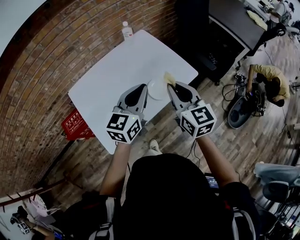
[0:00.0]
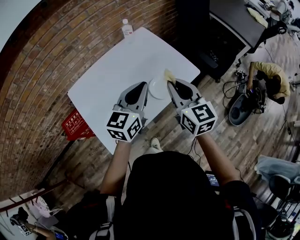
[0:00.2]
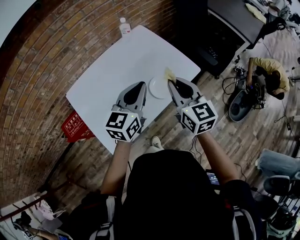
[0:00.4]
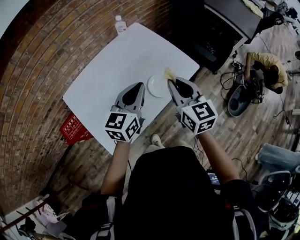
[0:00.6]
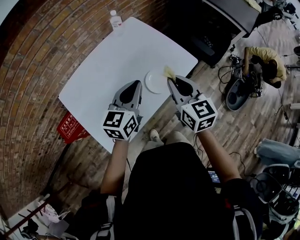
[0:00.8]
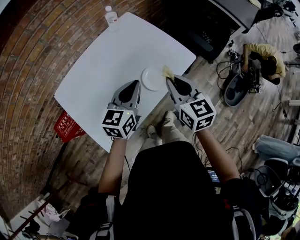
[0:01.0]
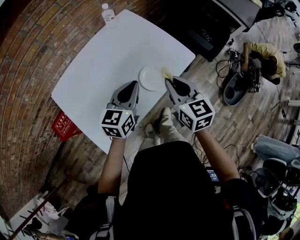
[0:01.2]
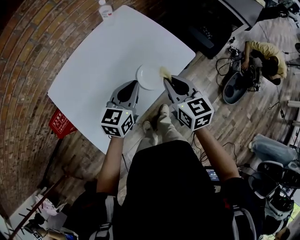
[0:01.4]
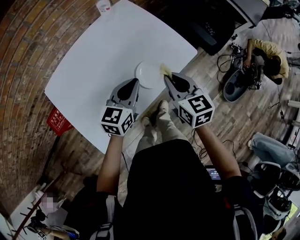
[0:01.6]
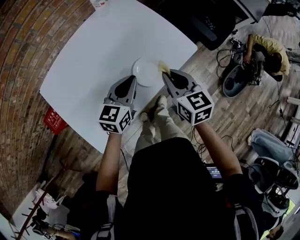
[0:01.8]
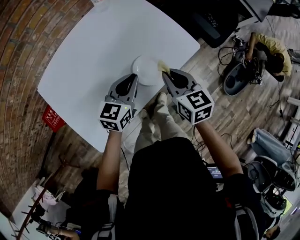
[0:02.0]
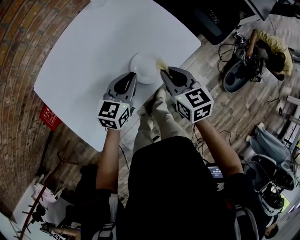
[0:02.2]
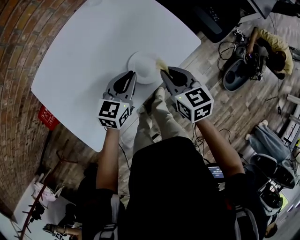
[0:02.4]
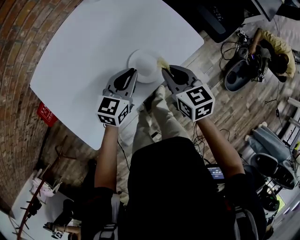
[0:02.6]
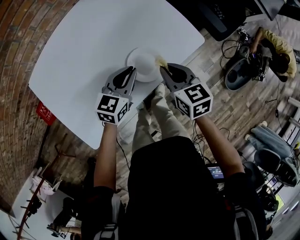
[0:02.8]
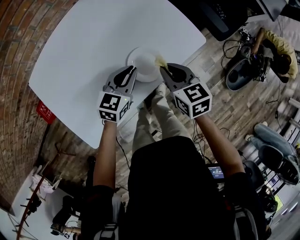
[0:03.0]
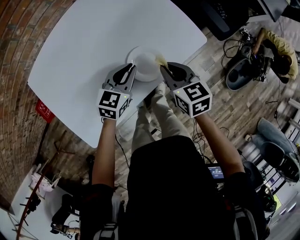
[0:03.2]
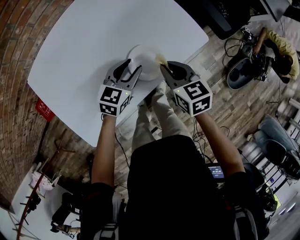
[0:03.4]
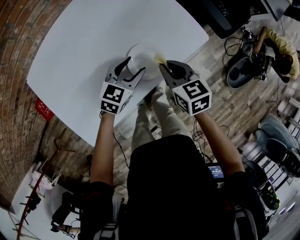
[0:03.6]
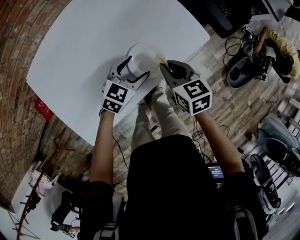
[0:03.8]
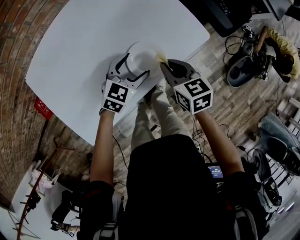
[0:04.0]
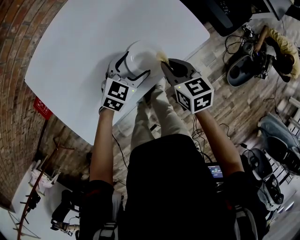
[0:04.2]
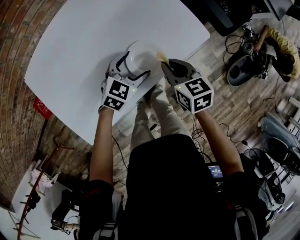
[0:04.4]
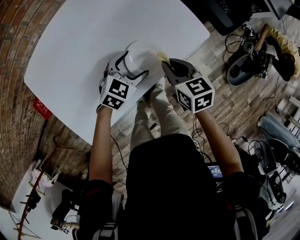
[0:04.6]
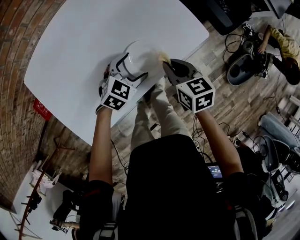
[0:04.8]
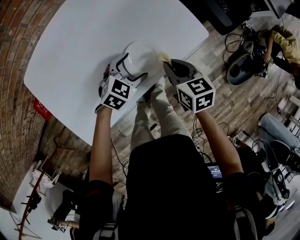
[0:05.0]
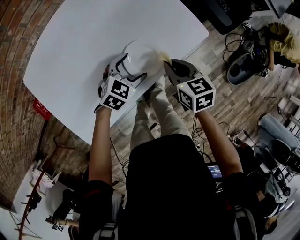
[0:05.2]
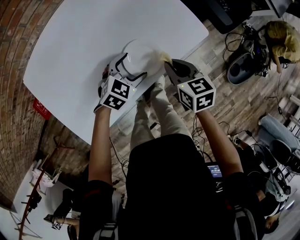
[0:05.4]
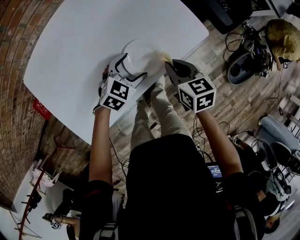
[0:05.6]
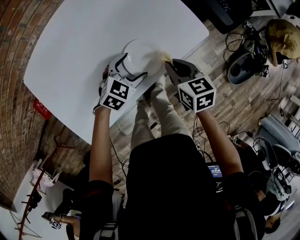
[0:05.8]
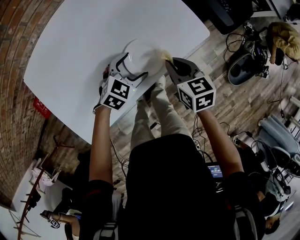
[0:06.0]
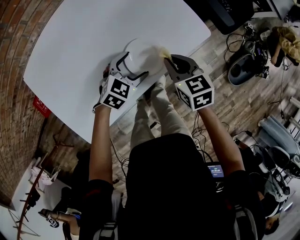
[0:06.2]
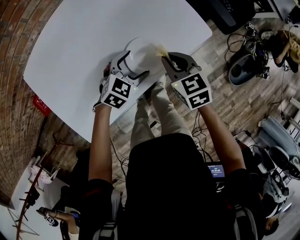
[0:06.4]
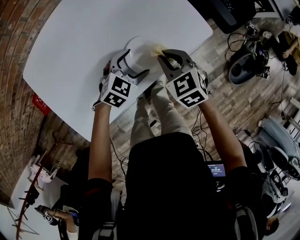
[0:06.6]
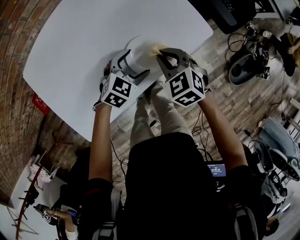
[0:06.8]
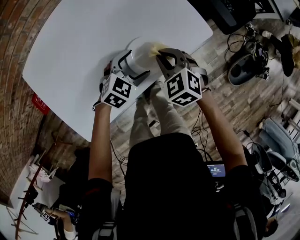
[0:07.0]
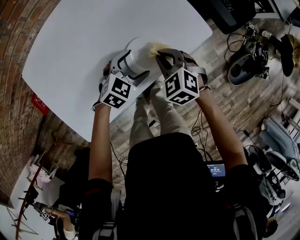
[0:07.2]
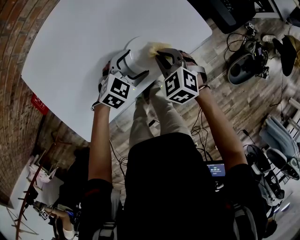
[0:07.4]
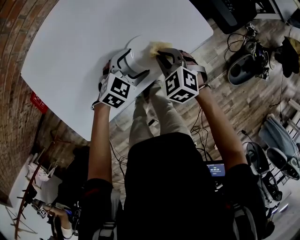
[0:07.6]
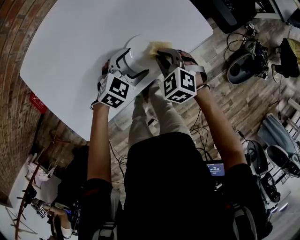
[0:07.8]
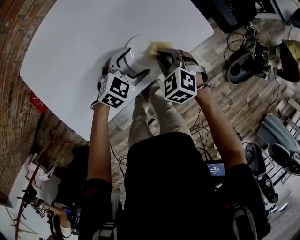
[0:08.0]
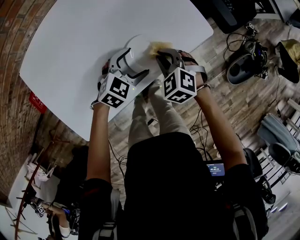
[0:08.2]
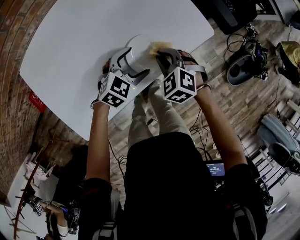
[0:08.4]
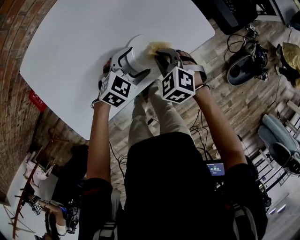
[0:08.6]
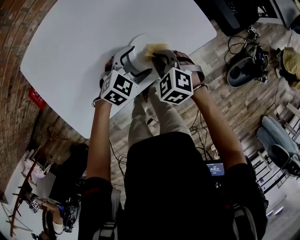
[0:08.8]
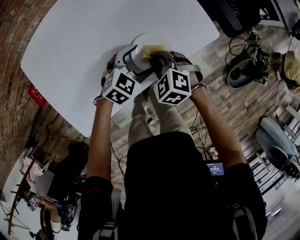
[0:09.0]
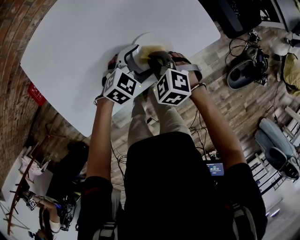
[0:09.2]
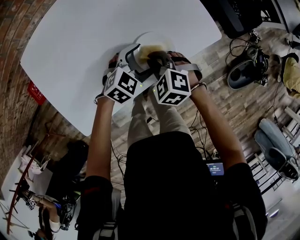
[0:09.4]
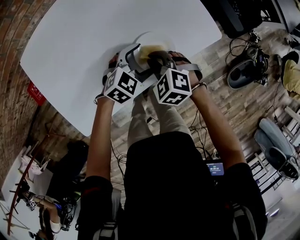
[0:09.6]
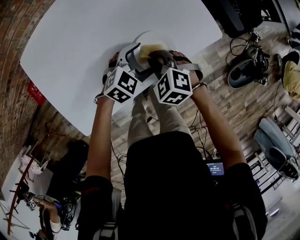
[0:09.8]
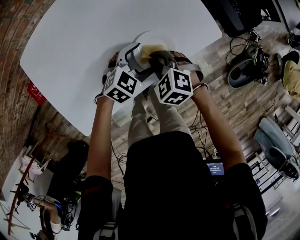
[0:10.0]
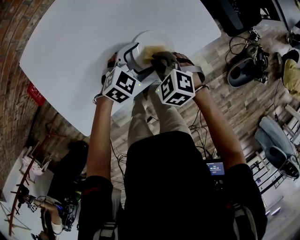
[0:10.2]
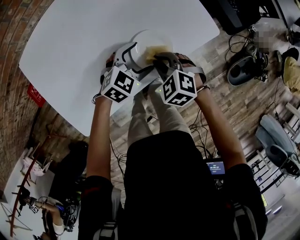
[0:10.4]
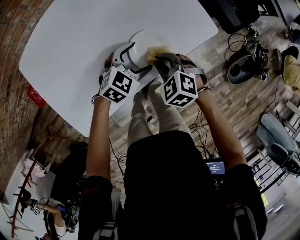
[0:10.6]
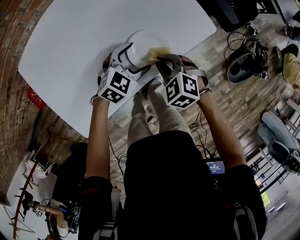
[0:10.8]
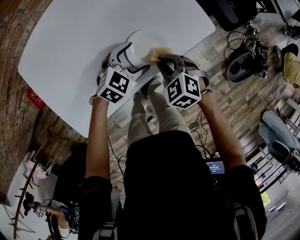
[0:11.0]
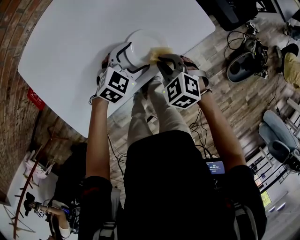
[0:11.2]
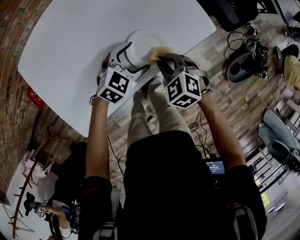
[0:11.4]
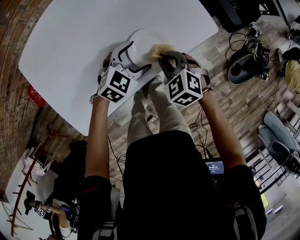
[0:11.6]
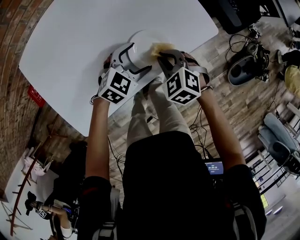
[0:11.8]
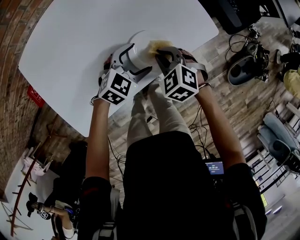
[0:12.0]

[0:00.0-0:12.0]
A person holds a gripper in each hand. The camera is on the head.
0:00.0 to 0:01.6: Both grippers travel together downward and forward, about 15 cm.
0:01.6 to 0:03.0: Both grippers travel together downward, about 10 cm.
0:03.0 to 0:04.4: The left gripper shifts by roughly 5 cm, and opens up.
0:04.4 to 0:06.0: The grippers move only a little.
0:06.0 to 0:07.6: The right gripper ends up roughly 5 cm from where it was, and twists approximately 50 degrees counterclockwise, seen from behind.
0:07.6 to 0:09.0: The right gripper changes place by some 5 cm.
0:09.0 to 0:12.0: The grippers stay close to where they were, moving slightly.

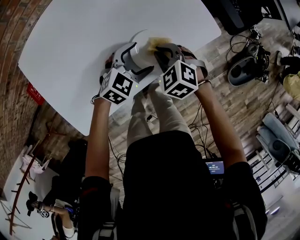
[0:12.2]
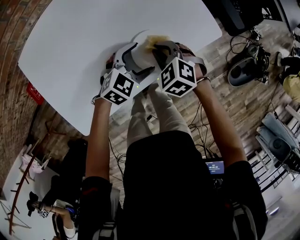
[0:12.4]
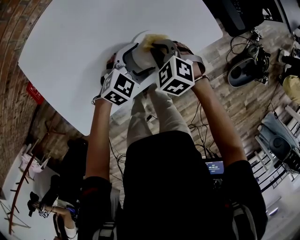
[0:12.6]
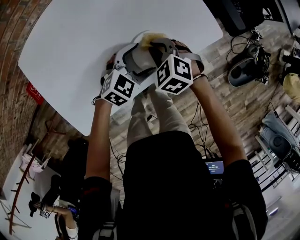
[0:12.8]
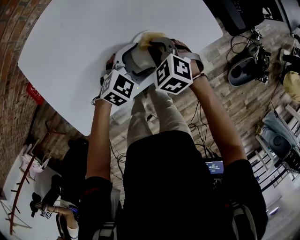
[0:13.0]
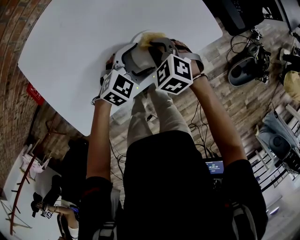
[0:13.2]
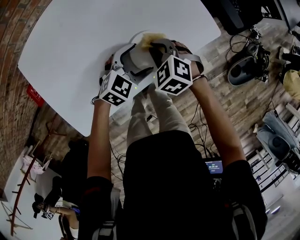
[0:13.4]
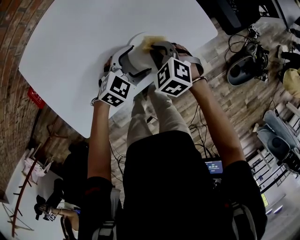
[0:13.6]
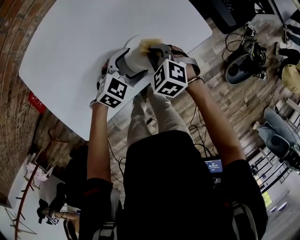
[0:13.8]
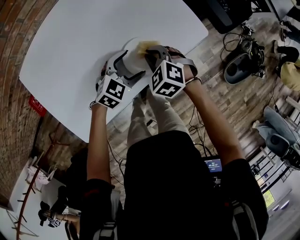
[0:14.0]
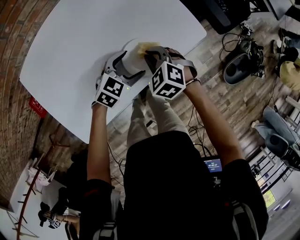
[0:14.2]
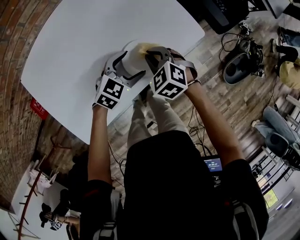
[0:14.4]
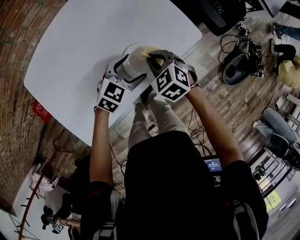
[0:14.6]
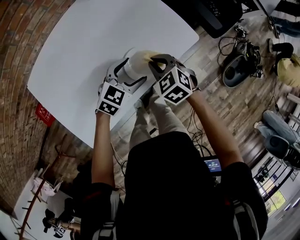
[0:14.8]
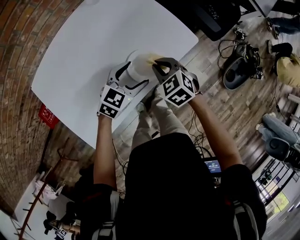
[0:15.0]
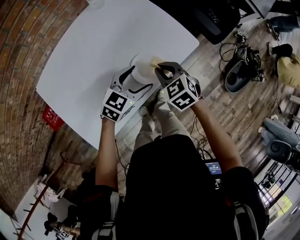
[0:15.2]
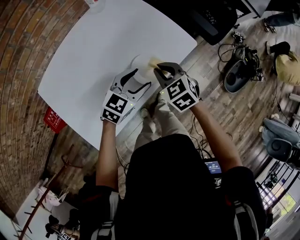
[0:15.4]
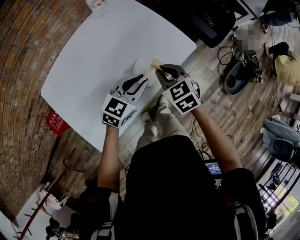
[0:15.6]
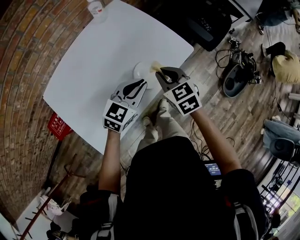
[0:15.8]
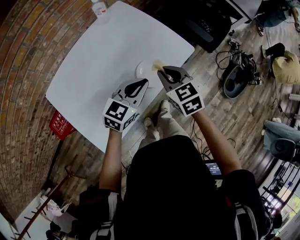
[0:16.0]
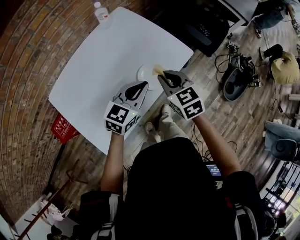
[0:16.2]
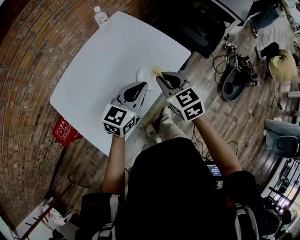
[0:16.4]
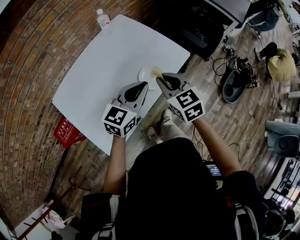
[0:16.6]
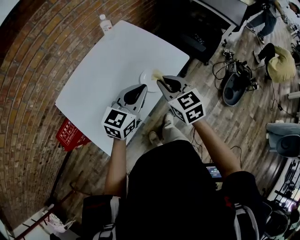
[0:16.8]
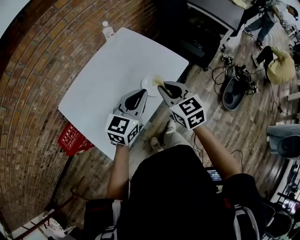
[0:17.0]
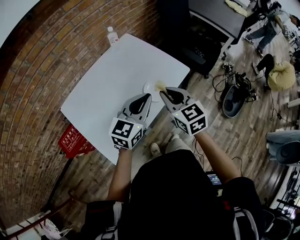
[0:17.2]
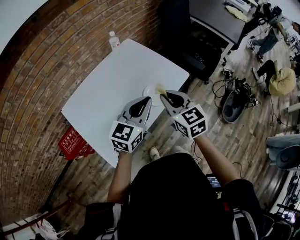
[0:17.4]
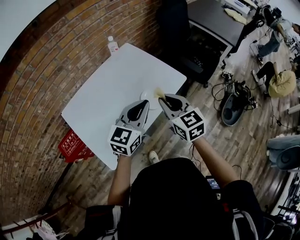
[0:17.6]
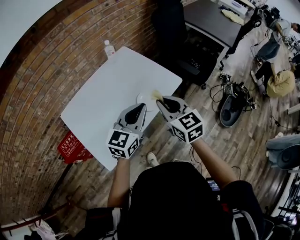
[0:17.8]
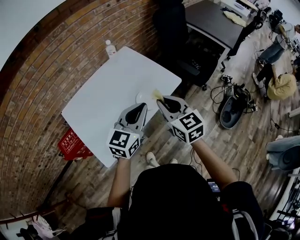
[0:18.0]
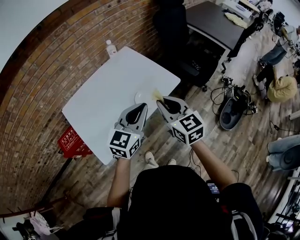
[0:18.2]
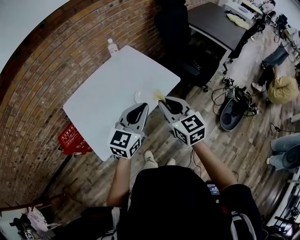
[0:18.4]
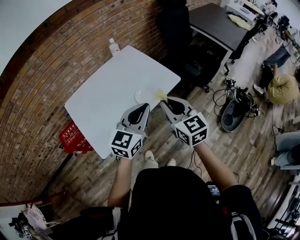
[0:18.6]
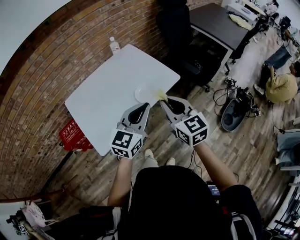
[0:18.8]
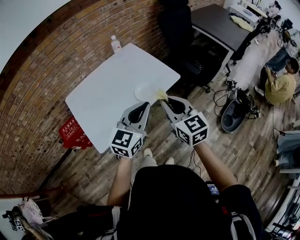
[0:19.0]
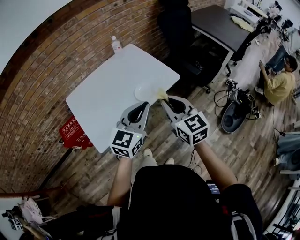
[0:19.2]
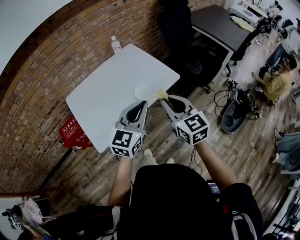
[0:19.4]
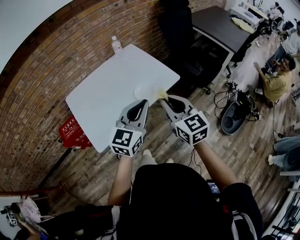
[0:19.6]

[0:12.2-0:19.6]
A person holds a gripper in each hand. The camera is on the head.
0:12.2 to 0:13.6: The grippers move only a little.
0:13.6 to 0:15.2: The grippers both shift upward by about 10 cm. The right gripper rotates roughly 20 degrees.
0:15.2 to 0:16.6: The left gripper goes some 15 cm upward, and closes up. The right gripper is displaced upward and backward by approximately 15 cm, and swivels some 30 degrees.
0:16.6 to 0:18.2: The grippers both shift upward, backward and to the right by roughly 15 cm.
0:18.2 to 0:19.6: Both grippers travel together backward, approximately 5 cm.

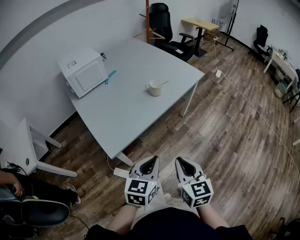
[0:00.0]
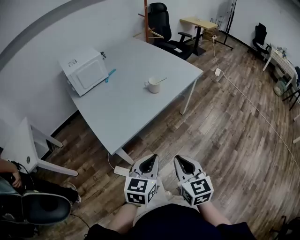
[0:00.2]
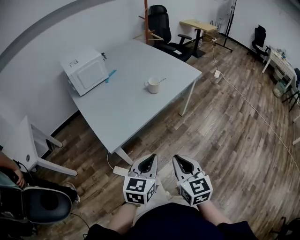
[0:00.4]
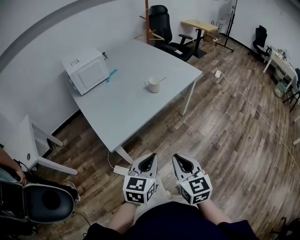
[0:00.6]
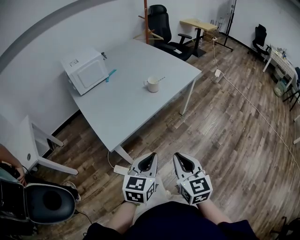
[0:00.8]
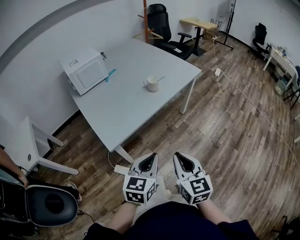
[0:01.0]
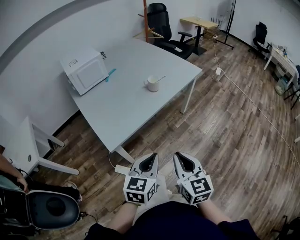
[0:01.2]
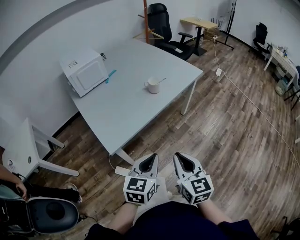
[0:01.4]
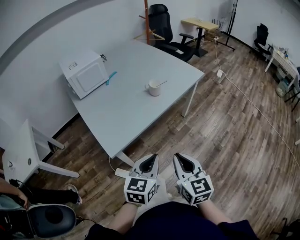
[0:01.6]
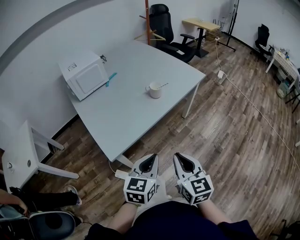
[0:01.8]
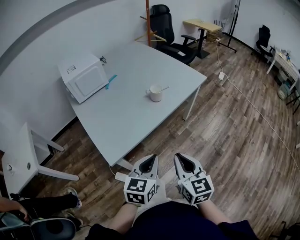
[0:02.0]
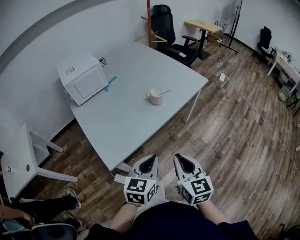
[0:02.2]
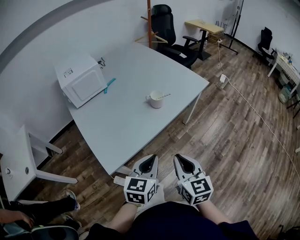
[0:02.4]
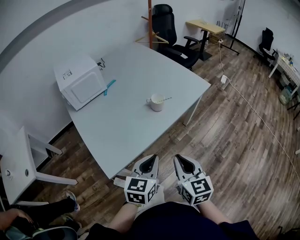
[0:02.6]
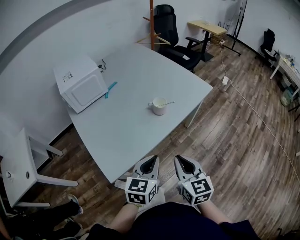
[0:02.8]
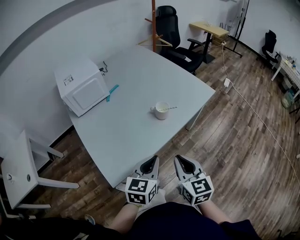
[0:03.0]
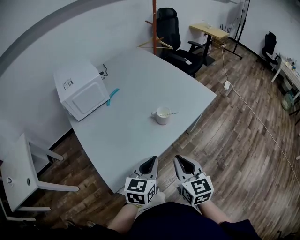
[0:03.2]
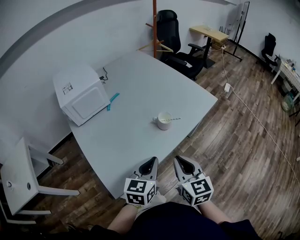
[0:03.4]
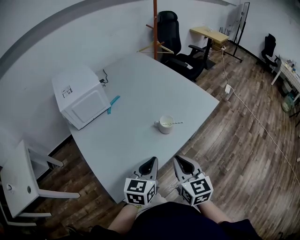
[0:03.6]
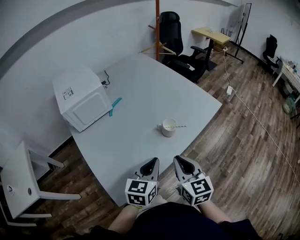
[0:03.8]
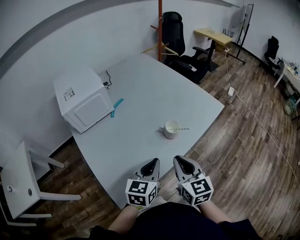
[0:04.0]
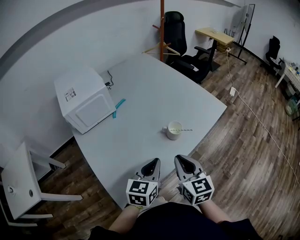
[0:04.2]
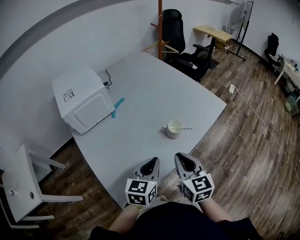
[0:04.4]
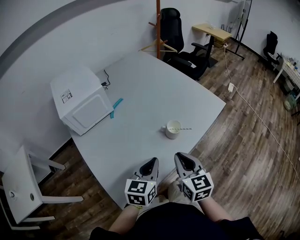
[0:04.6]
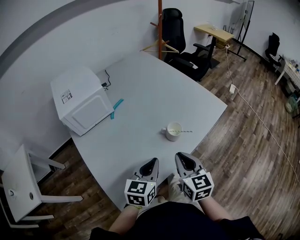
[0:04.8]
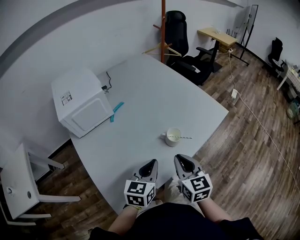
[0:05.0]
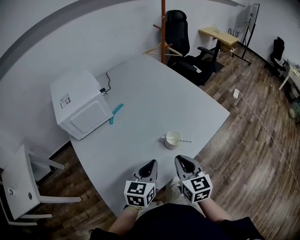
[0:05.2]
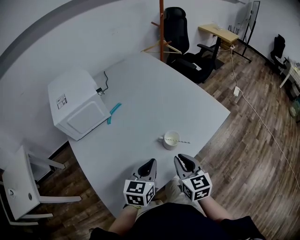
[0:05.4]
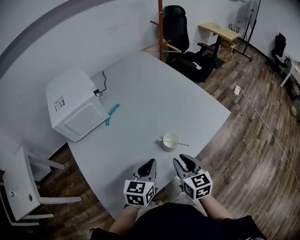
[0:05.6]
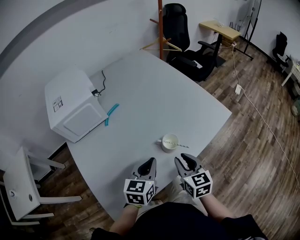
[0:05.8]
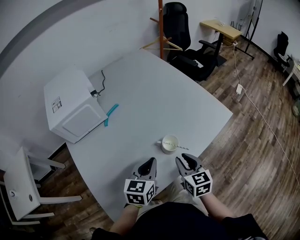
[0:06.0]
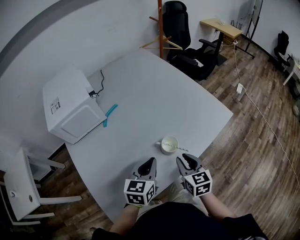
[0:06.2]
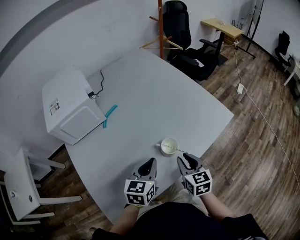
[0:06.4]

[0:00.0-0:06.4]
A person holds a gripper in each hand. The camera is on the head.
0:00.0 to 0:01.6: The grippers move only a little.
0:01.6 to 0:03.2: Both grippers travel together forward, some 20 cm.
0:03.2 to 0:04.8: The right gripper moves forward, about 10 cm, while the left gripper heads forward and to the left, covering approximately 10 cm.
0:04.8 to 0:06.4: The left gripper is displaced forward by some 10 cm. Meanwhile the right gripper shifts roughly 15 cm forward, downward and to the right.
